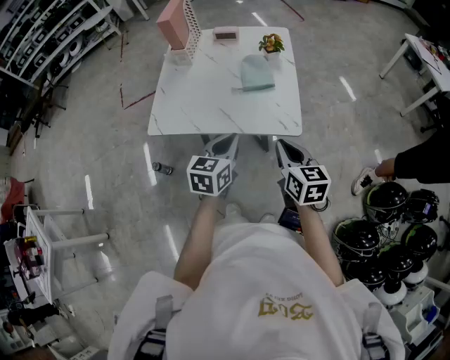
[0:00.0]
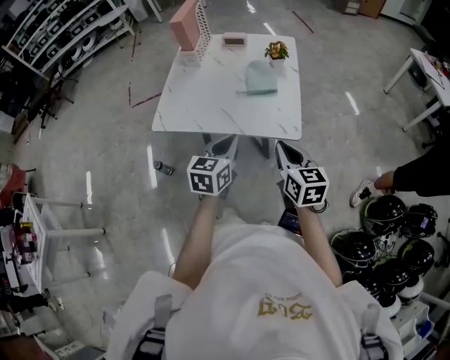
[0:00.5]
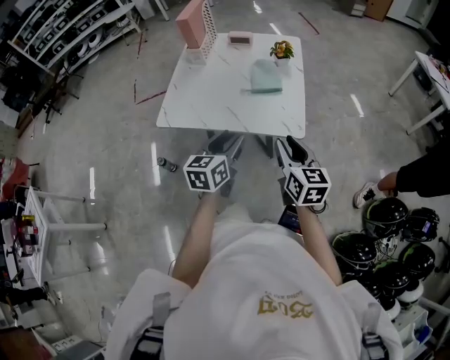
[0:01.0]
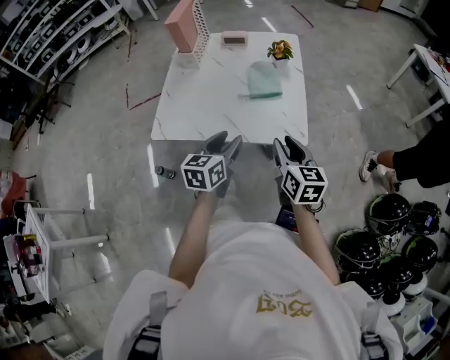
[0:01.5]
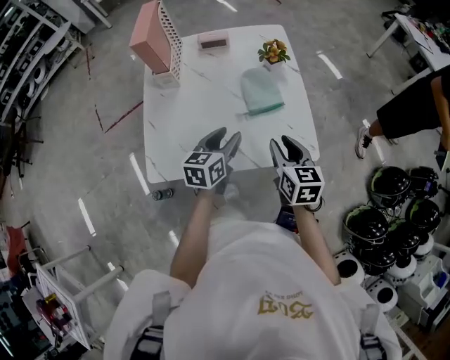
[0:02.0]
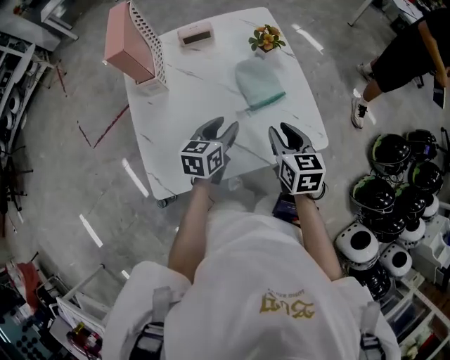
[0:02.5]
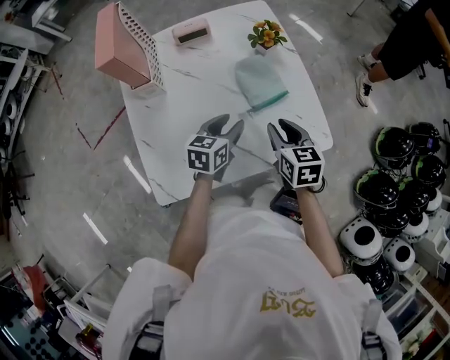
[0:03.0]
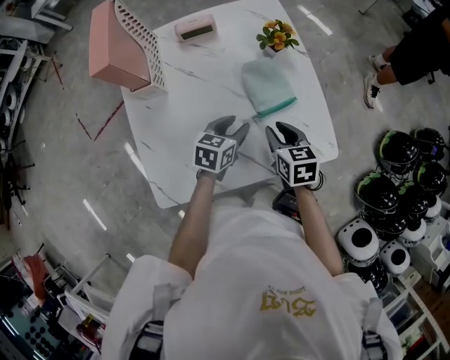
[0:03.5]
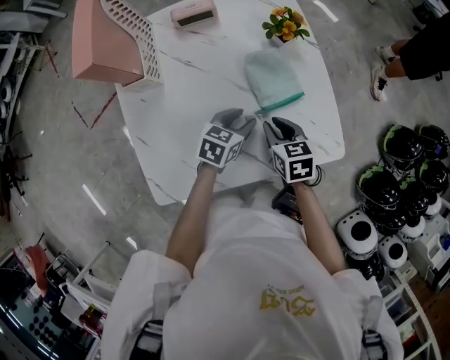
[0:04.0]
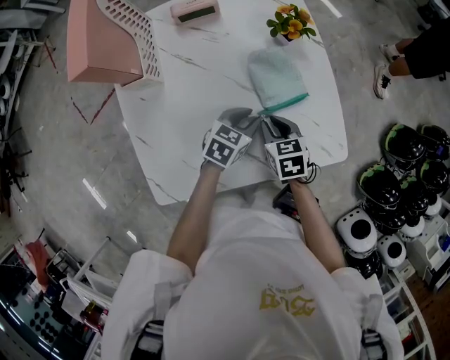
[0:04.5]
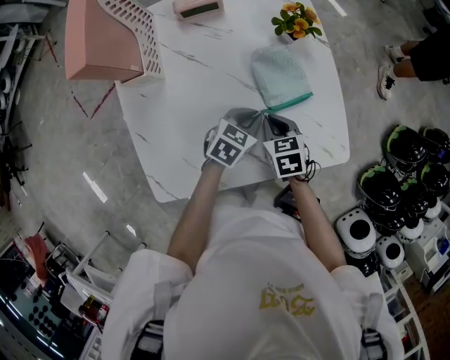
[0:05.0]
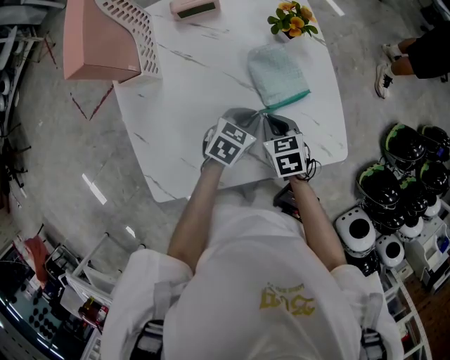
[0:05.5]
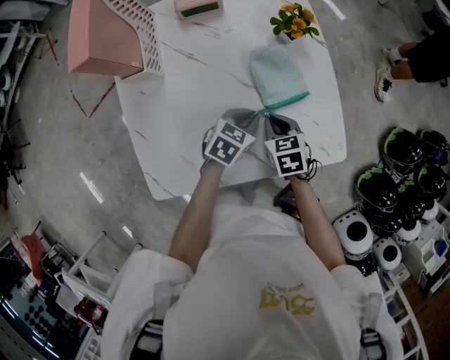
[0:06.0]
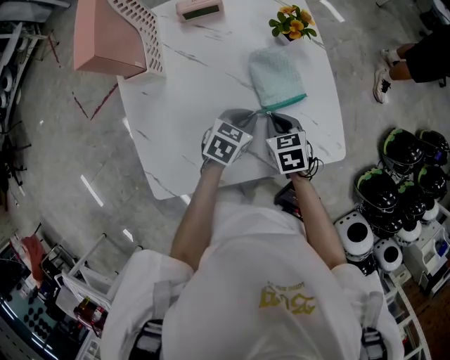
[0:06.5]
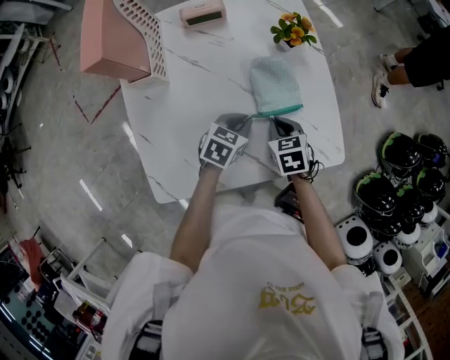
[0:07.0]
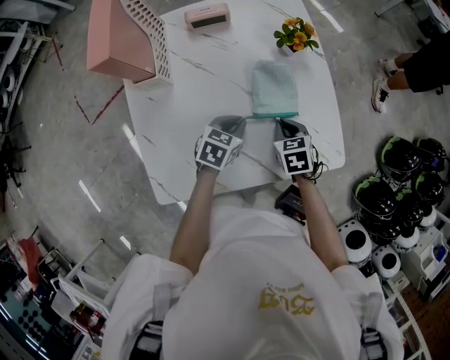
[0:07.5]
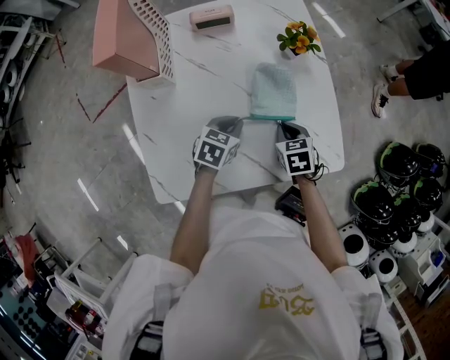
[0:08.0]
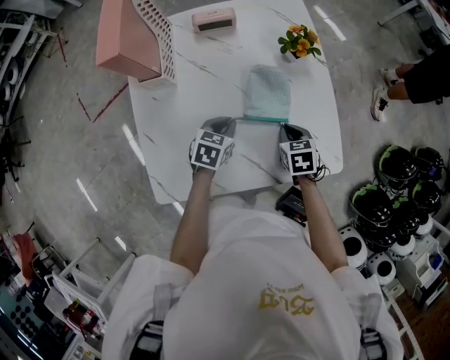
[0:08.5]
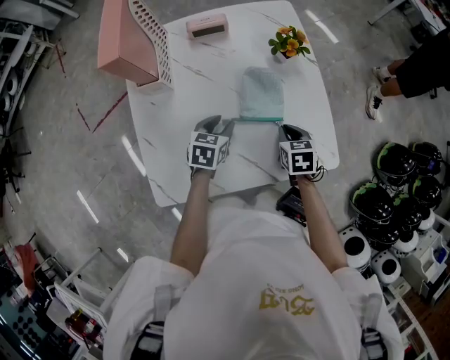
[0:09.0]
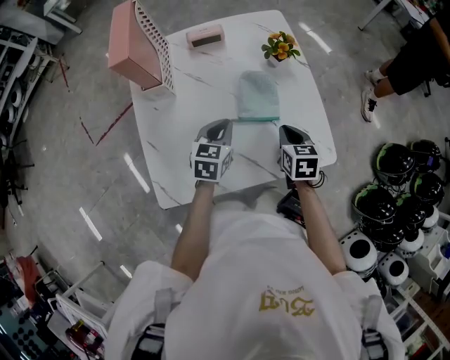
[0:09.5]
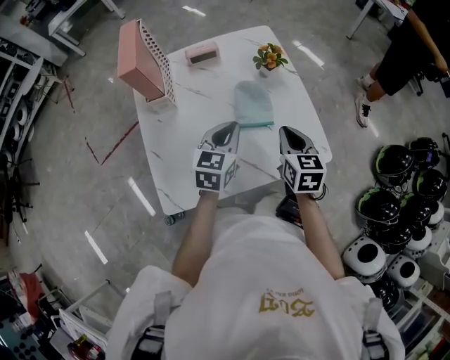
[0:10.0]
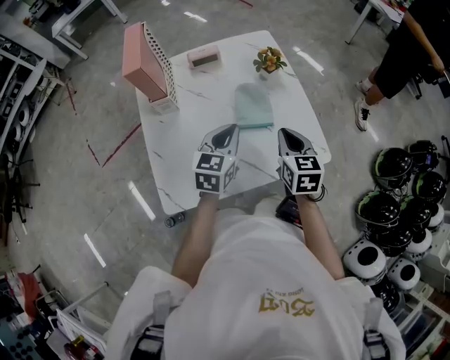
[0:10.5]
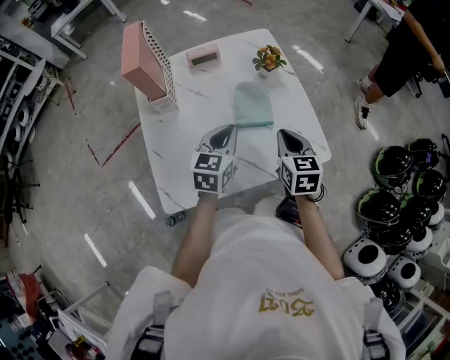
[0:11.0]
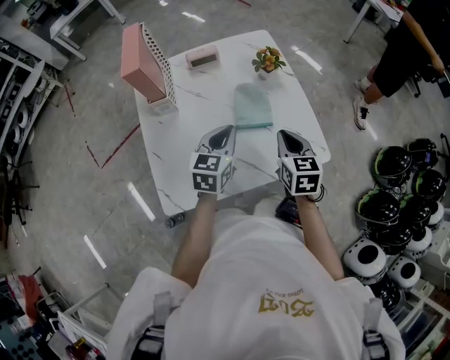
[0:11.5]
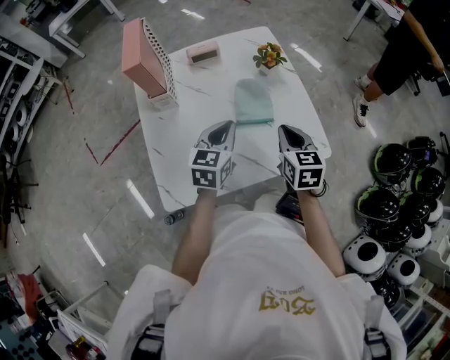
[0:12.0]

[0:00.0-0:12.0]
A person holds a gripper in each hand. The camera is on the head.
0:00.0 to 0:02.0: The right gripper is displaced forward and to the left by approximately 15 cm, and opens up. The left gripper is displaced forward by approximately 20 cm, and opens.
0:02.0 to 0:04.0: The left gripper moves downward and forward, roughly 20 cm, and rotates about 30 degrees; the right gripper moves downward, forward and to the left, approximately 20 cm.
0:04.0 to 0:06.0: The left gripper closes up.
0:06.0 to 0:08.0: The left gripper moves to the left, approximately 5 cm.
0:08.0 to 0:10.0: Both grippers move upward, about 15 cm. The right gripper swivels roughly 30 degrees. Meanwhile the left gripper swivels roughly 30 degrees, and opens and closes again.
0:10.0 to 0:12.0: There are only small adjustments of the grippers.

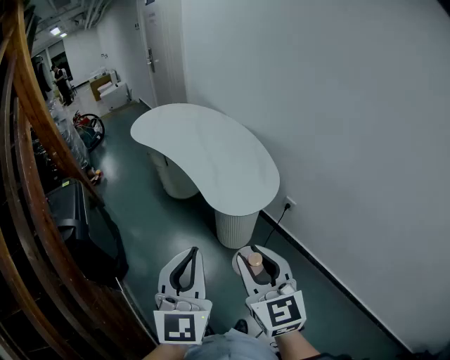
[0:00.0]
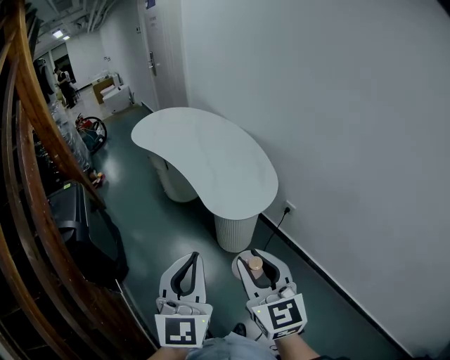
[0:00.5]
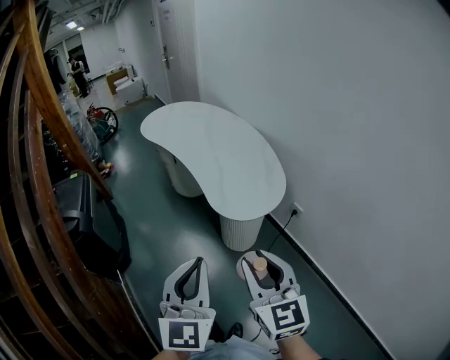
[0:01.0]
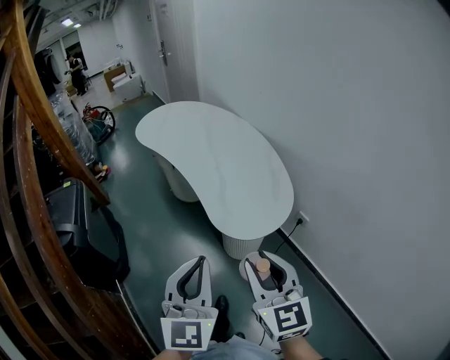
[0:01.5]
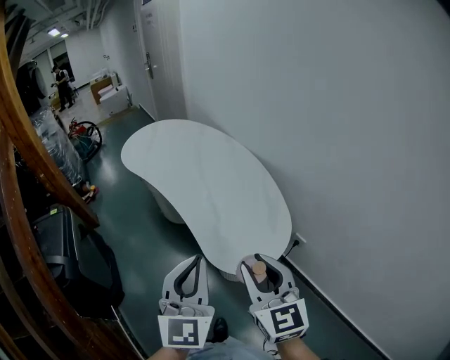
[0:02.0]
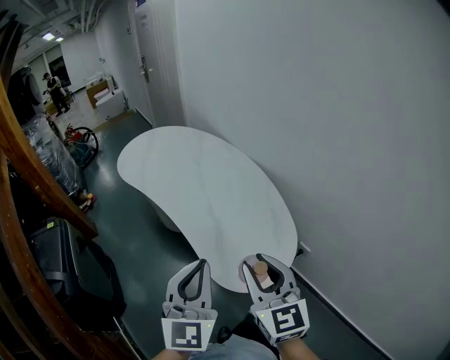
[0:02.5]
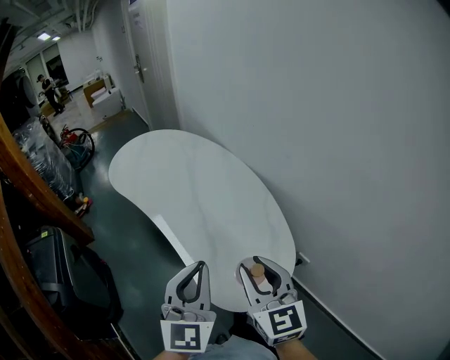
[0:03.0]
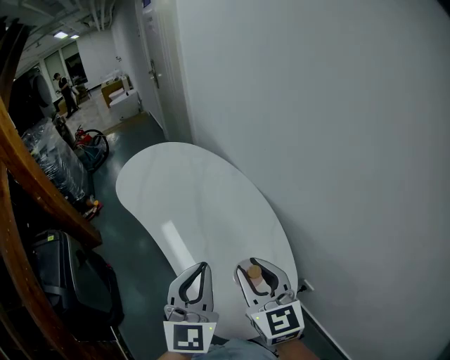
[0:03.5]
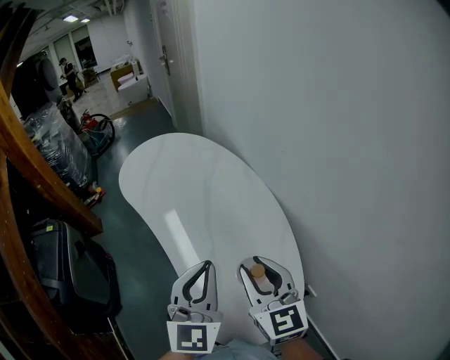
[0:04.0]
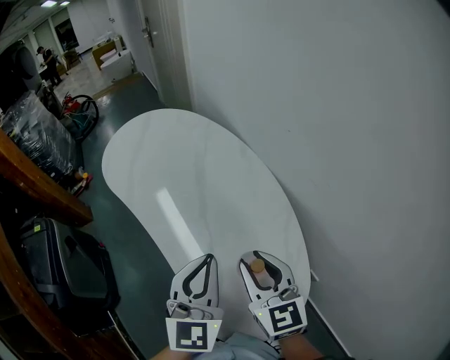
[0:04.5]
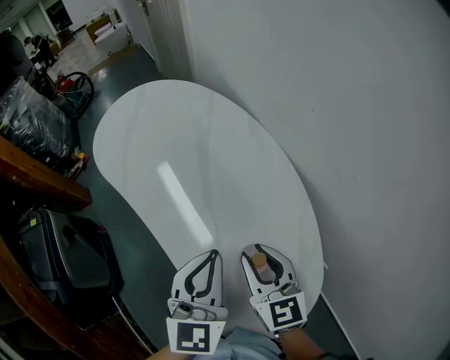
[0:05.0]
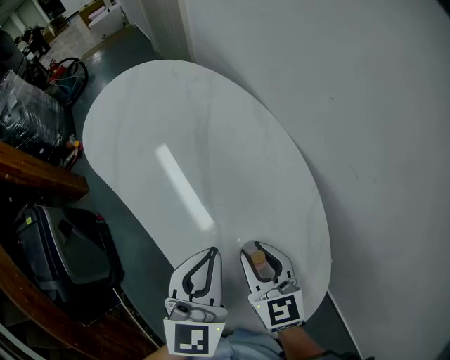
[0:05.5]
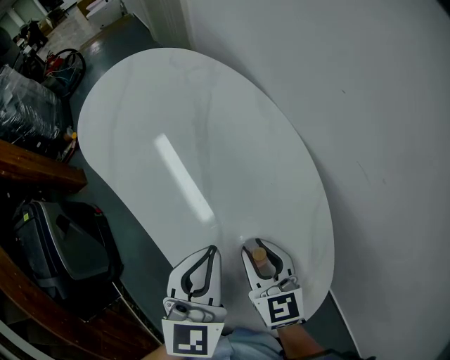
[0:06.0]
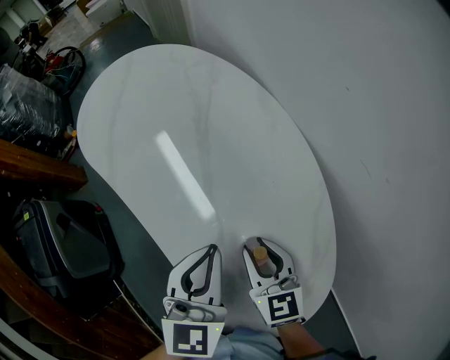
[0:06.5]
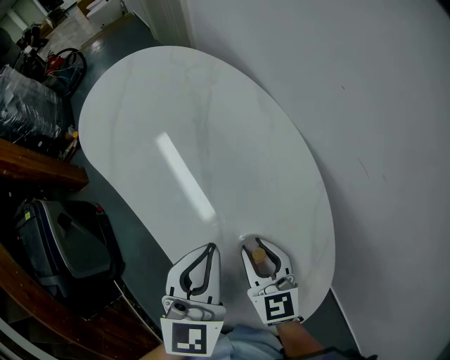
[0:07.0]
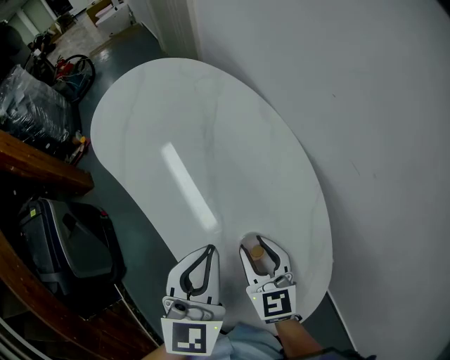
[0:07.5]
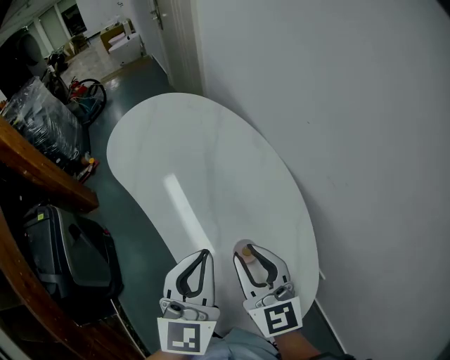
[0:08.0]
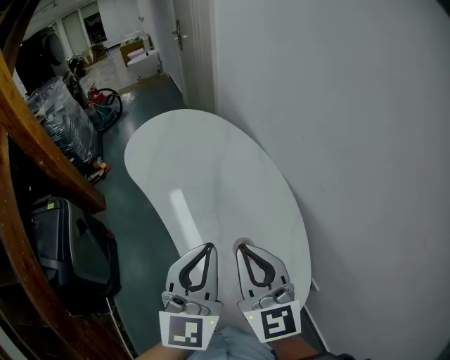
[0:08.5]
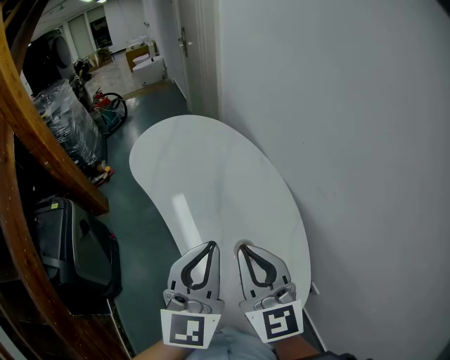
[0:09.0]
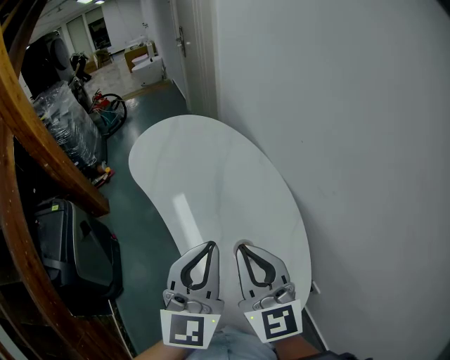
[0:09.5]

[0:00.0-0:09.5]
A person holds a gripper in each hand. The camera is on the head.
0:00.0 to 0:02.0: Both grippers move forward, approximately 15 cm.
0:02.0 to 0:04.0: The two grippers go some 20 cm forward.
0:04.0 to 0:05.5: The two grippers go approximately 10 cm downward. The left gripper rotates roughly 20 degrees.
0:05.5 to 0:07.5: The grippers move only a little.
0:07.5 to 0:09.5: The left gripper is displaced upward by some 10 cm, and turns by roughly 20 degrees. Meanwhile the right gripper is displaced upward by approximately 20 cm, points its fingers roughly 30 degrees further upward, and closes.

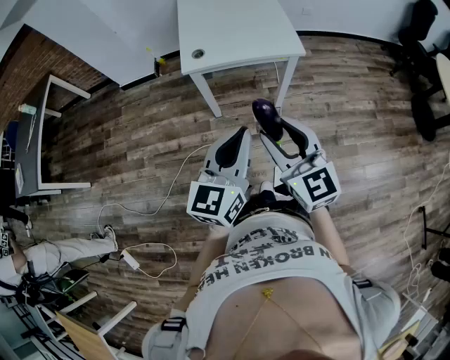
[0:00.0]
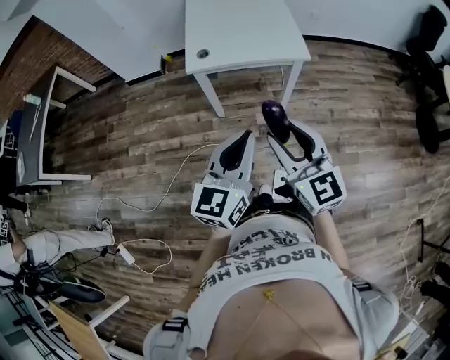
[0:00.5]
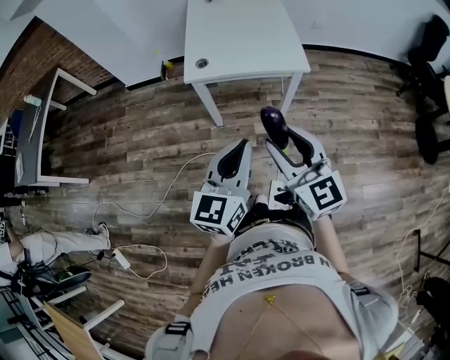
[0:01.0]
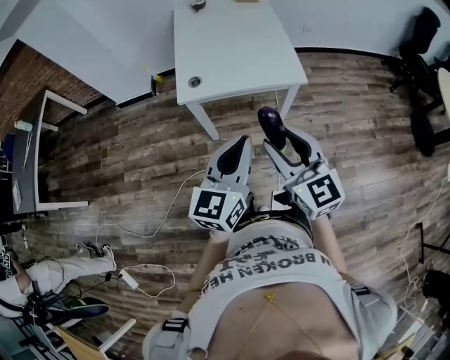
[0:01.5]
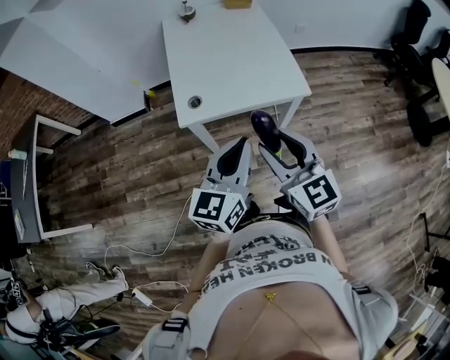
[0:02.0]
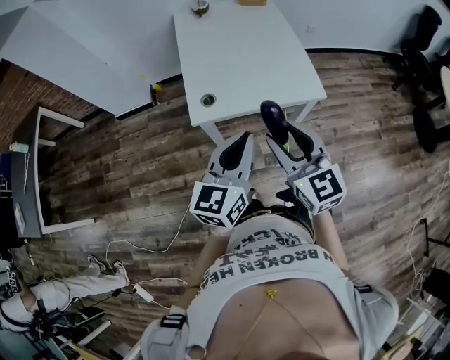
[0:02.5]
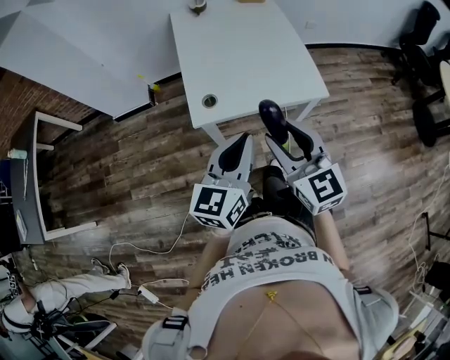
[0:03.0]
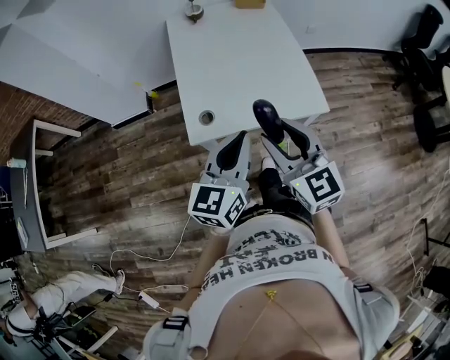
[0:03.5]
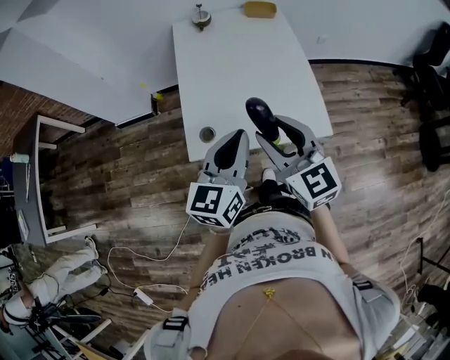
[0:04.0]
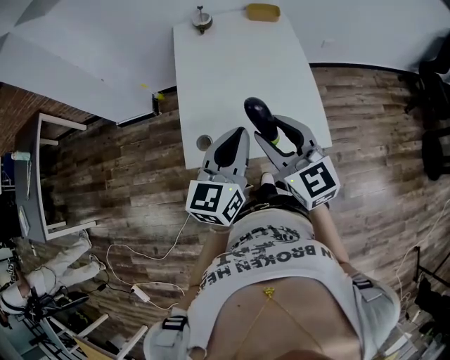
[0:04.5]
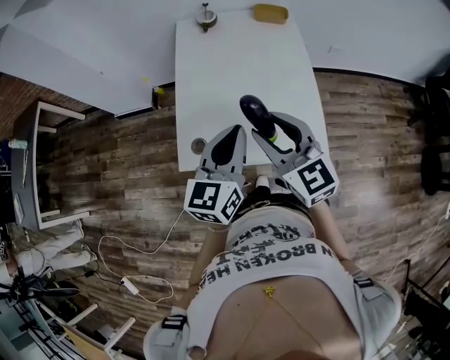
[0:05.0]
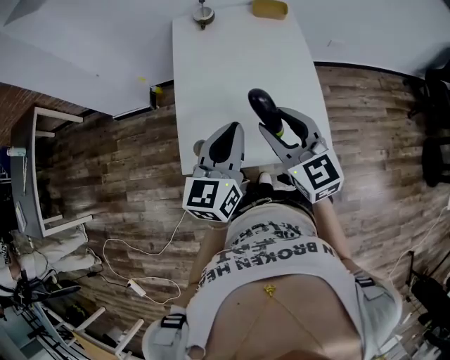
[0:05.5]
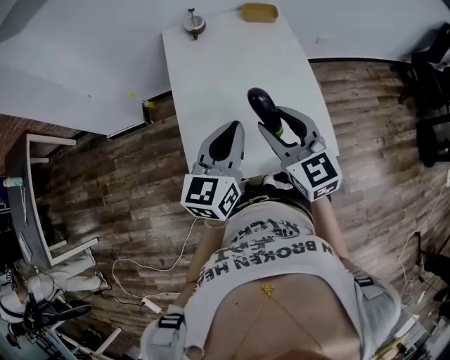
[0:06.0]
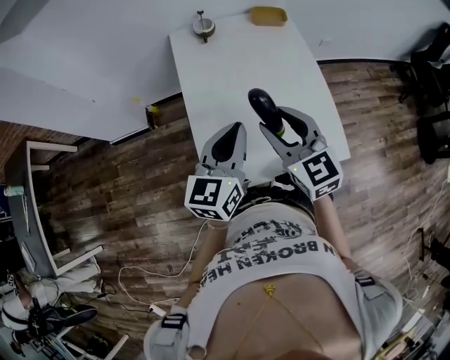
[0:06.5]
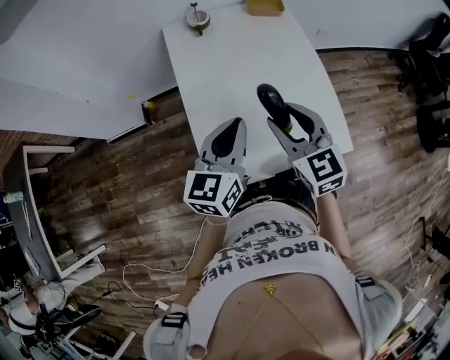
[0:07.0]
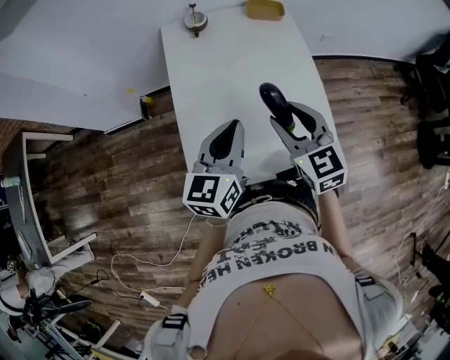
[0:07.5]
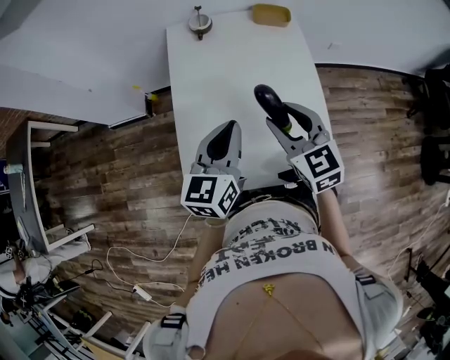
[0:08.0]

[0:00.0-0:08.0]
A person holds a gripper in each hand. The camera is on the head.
0:00.0 to 0:02.0: The two grippers go roughly 25 cm forward.
0:02.0 to 0:04.0: Both grippers travel together forward, approximately 20 cm.
0:04.0 to 0:06.0: The grippers both shift forward by approximately 15 cm.
0:06.0 to 0:08.0: Both grippers travel together forward, some 10 cm.
